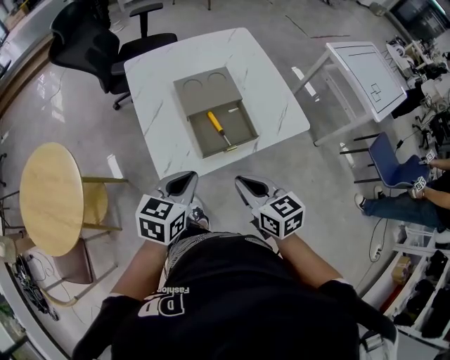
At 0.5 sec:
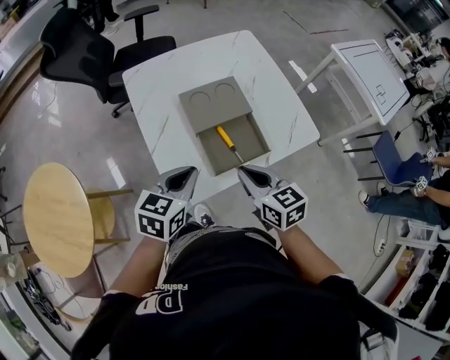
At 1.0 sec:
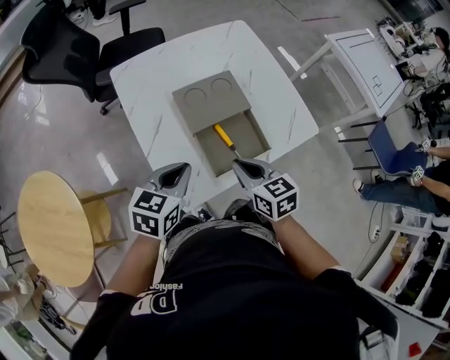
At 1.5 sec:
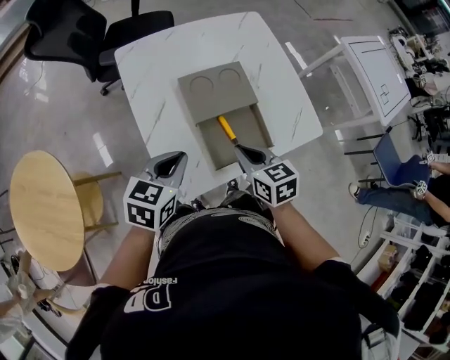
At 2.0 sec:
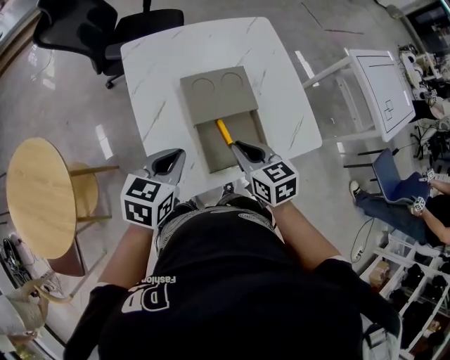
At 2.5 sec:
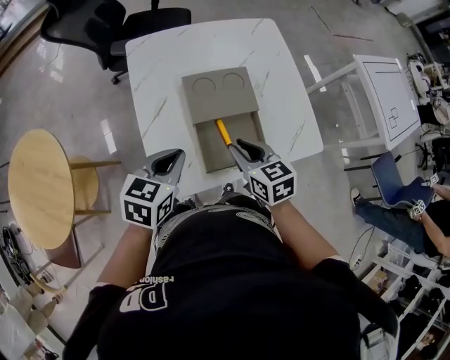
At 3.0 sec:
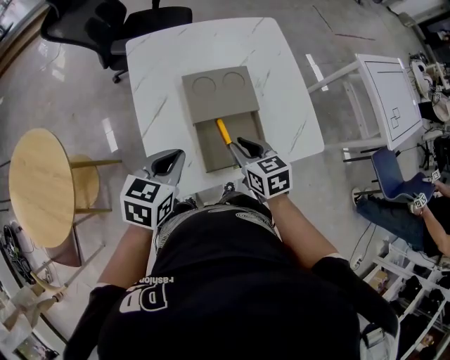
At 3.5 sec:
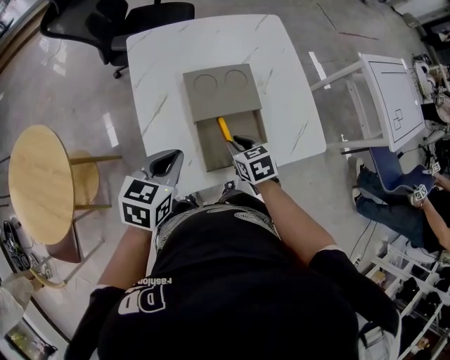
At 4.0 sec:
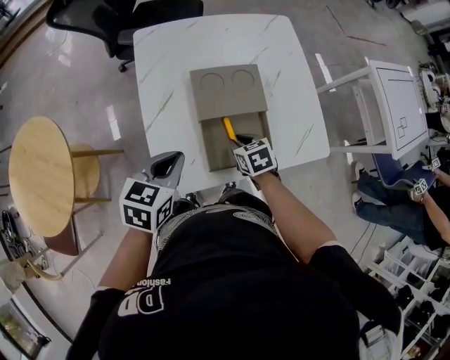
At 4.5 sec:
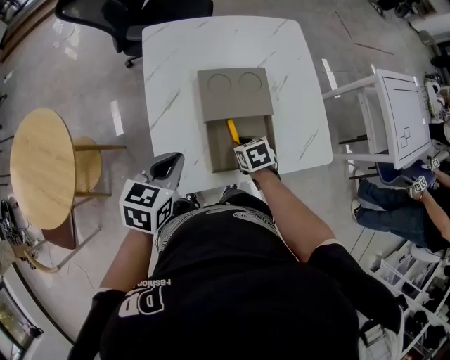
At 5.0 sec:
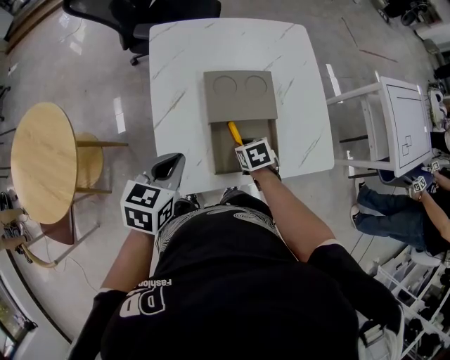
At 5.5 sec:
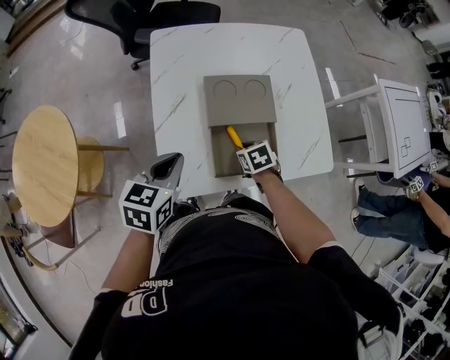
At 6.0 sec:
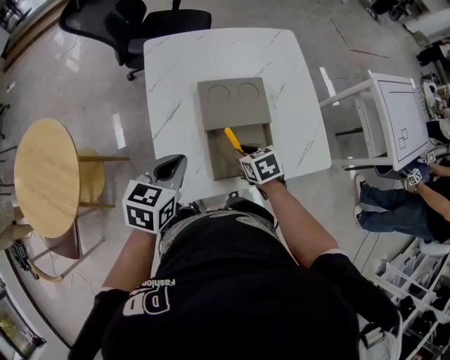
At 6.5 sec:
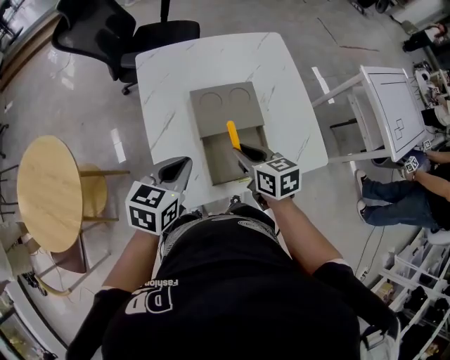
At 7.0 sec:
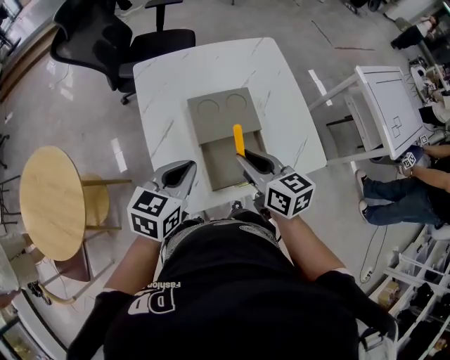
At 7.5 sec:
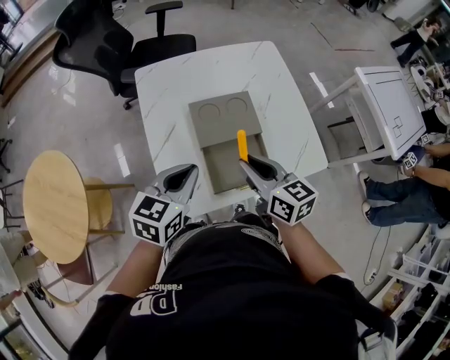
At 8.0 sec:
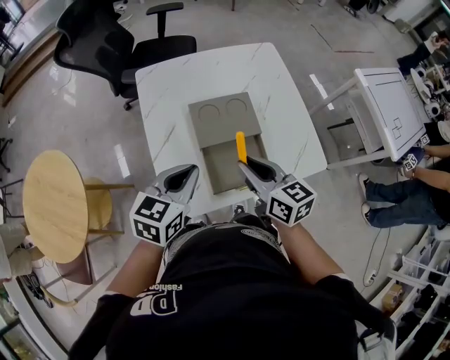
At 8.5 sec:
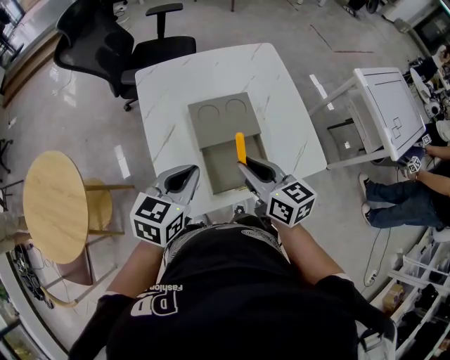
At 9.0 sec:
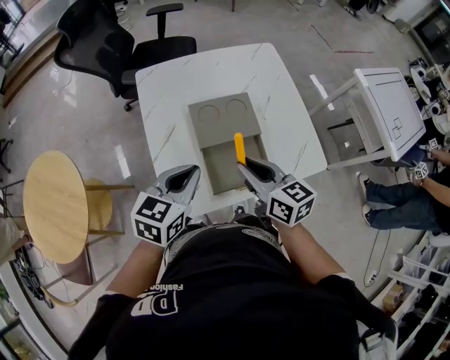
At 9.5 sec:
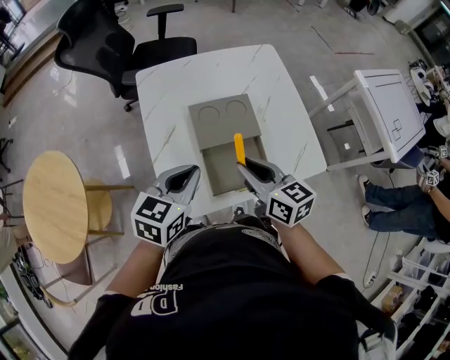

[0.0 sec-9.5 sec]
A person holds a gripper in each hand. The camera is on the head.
0.0 sec to 2.0 sec: The left gripper is displaced forward and to the left by some 15 cm; the right gripper shifts about 20 cm forward.
2.0 sec to 4.0 sec: The right gripper is displaced downward by some 15 cm, and rotates some 20 degrees.
4.0 sec to 5.5 sec: The grippers move only a little.
5.5 sec to 7.5 sec: The right gripper shifts roughly 25 cm upward, and angles its fingers upward, by about 50 degrees. The left gripper travels upward and to the right by roughly 10 cm.
7.5 sec to 9.5 sec: The two grippers keep their place.

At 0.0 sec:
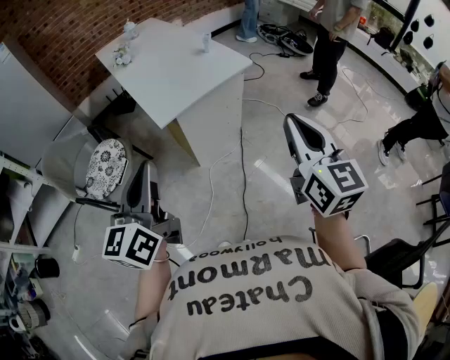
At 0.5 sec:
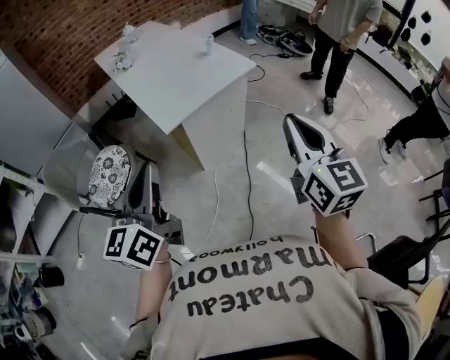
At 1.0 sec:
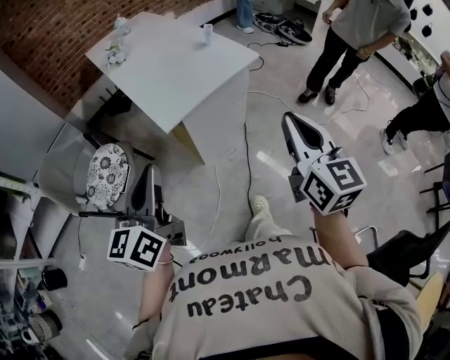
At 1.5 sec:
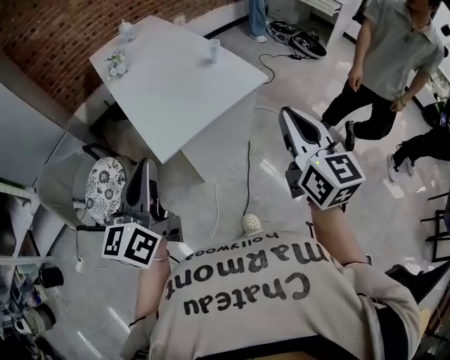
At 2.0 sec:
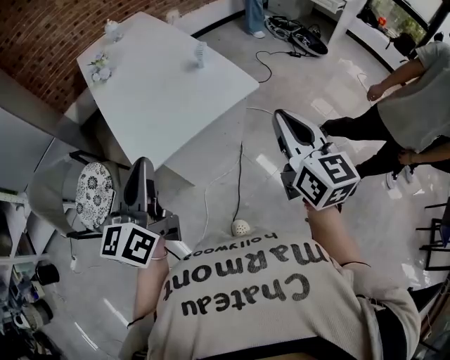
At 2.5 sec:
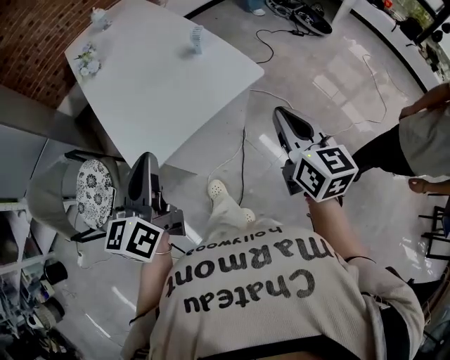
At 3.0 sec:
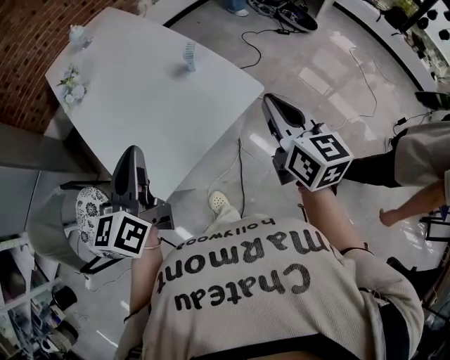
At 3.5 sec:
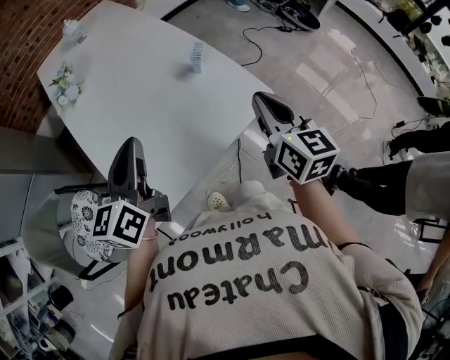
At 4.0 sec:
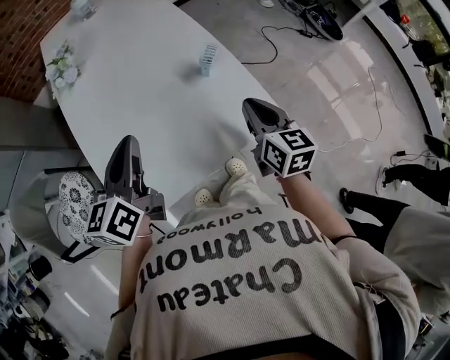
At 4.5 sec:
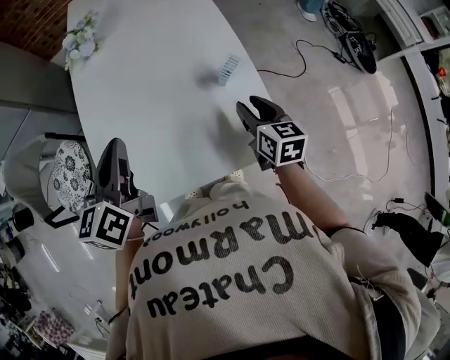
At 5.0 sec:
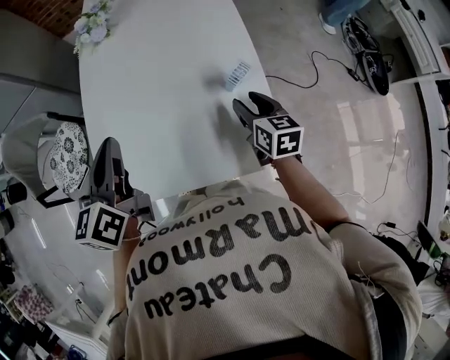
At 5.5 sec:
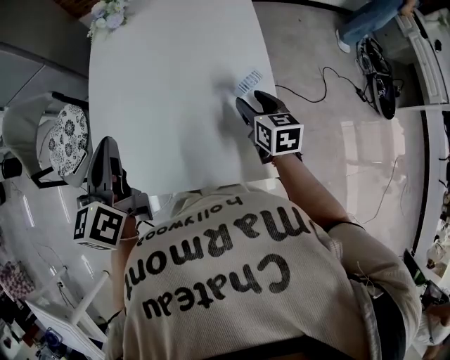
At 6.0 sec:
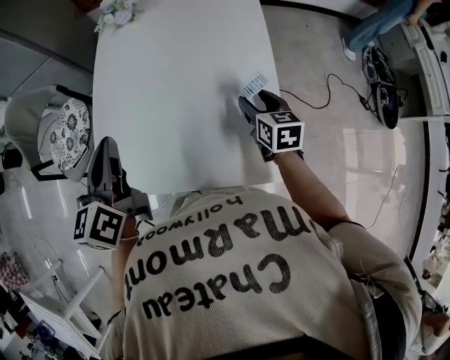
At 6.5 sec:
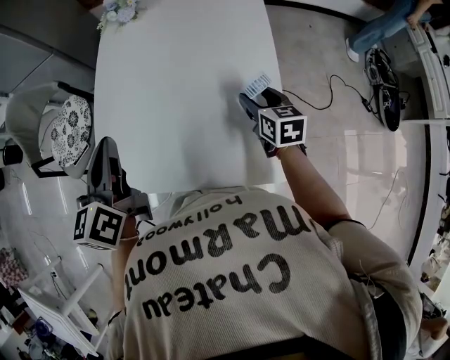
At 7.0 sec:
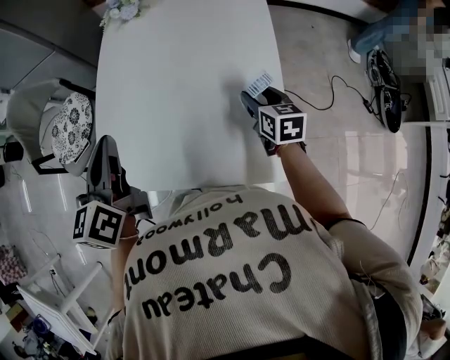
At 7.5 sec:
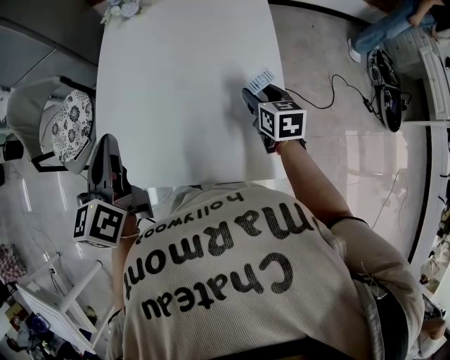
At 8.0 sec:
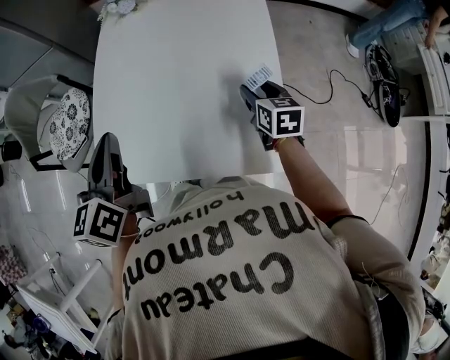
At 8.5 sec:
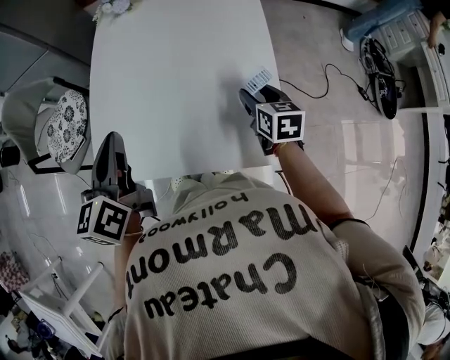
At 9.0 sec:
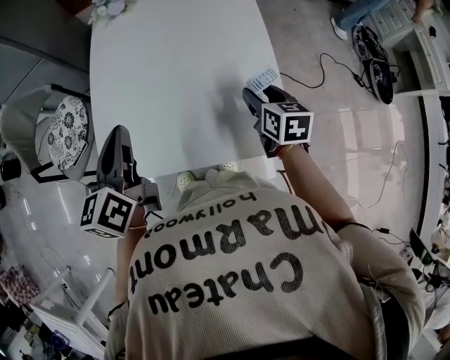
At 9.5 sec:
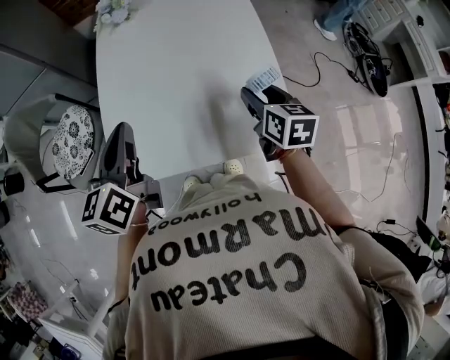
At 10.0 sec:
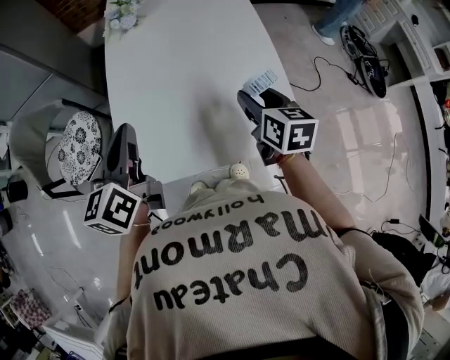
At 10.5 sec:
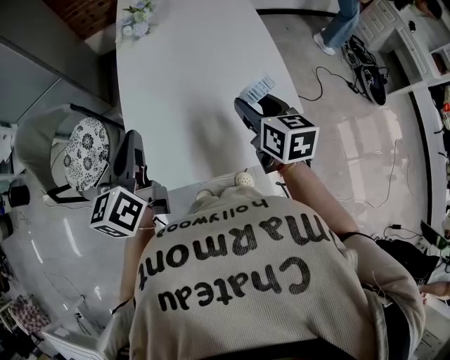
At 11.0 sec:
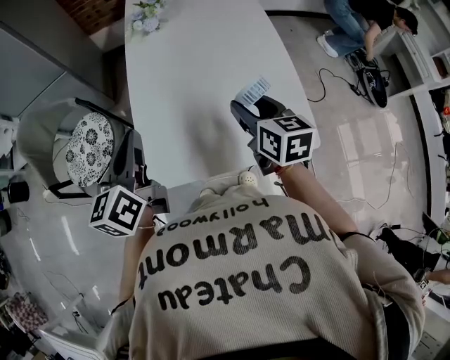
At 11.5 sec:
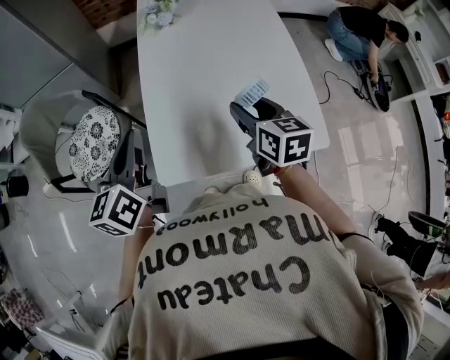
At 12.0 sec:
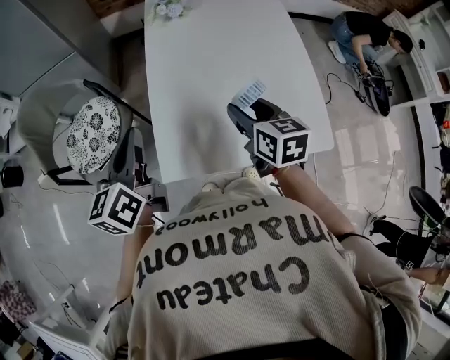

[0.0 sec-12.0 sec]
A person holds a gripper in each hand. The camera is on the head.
0.0 sec to 2.0 sec: Both grippers travel together forward, roughly 30 cm.
2.0 sec to 4.0 sec: Both grippers travel together forward and downward, about 35 cm.
4.0 sec to 6.0 sec: The left gripper swivels some 40 degrees, while the right gripper changes place by approximately 20 cm, swivels some 30 degrees, and opens up.
6.0 sec to 8.0 sec: The grippers stay close to where they were, moving slightly.
8.0 sec to 10.0 sec: The left gripper is displaced to the left by approximately 5 cm; the right gripper moves upward, to the left and backward, about 15 cm.
10.0 sec to 12.0 sec: The two grippers go about 15 cm to the left.

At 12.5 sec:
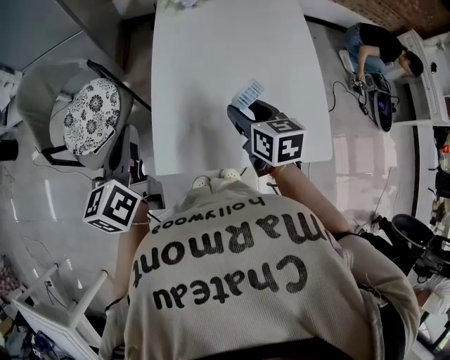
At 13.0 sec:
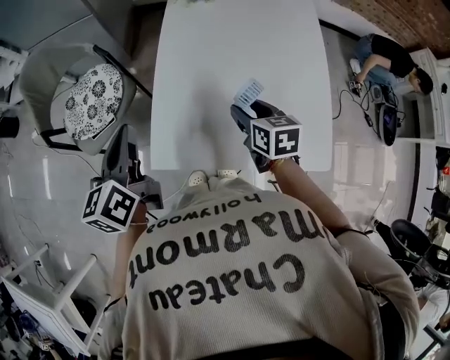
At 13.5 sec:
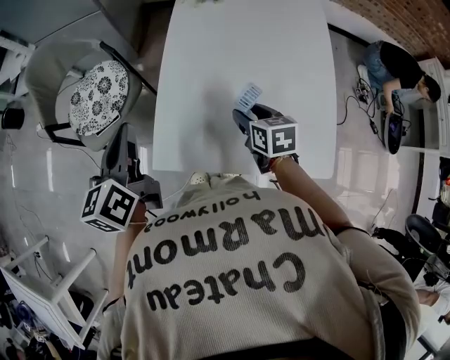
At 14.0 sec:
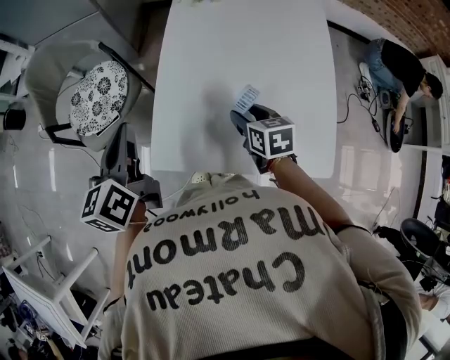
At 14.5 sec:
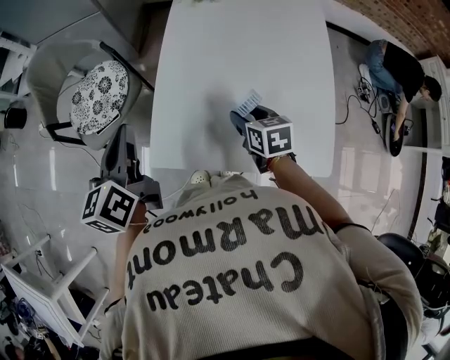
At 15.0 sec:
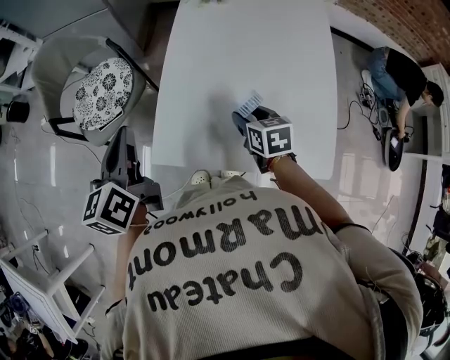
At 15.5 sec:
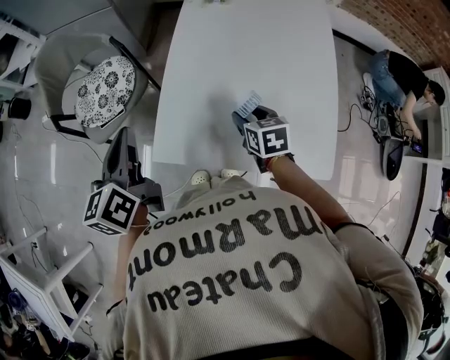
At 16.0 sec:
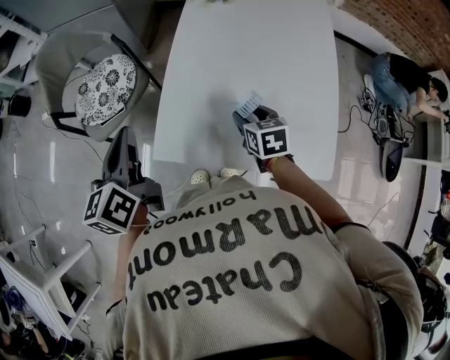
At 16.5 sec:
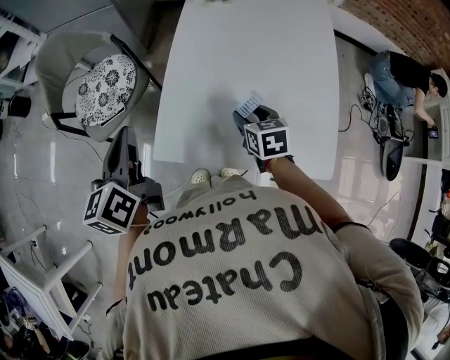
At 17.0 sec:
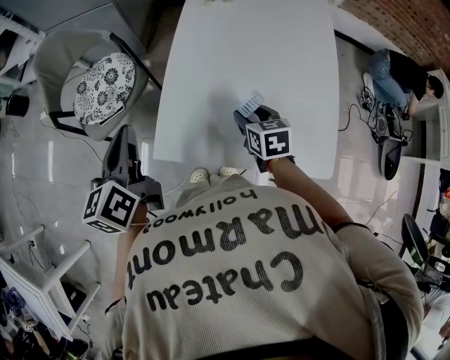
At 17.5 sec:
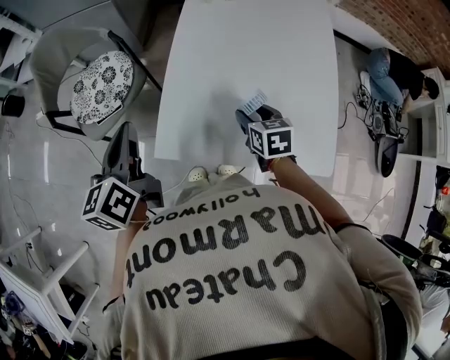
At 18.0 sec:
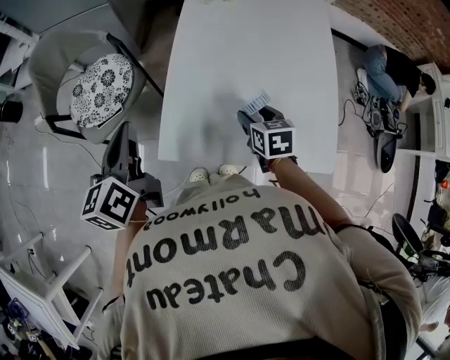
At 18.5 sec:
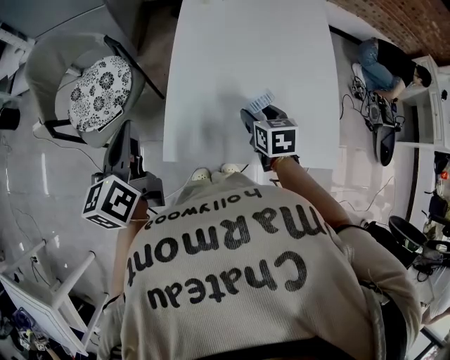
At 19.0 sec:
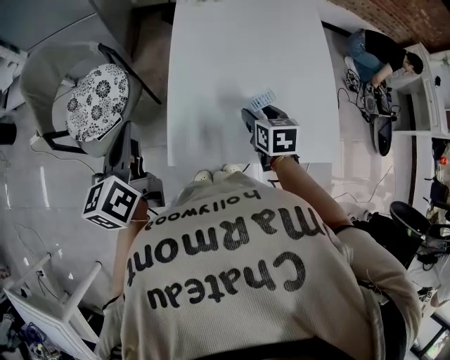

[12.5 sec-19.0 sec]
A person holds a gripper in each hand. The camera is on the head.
12.5 sec to 14.5 sec: The right gripper moves downward, approximately 10 cm.
14.5 sec to 17.0 sec: There are only small adjustments of the grippers.
17.0 sec to 19.0 sec: The left gripper changes place by about 5 cm.
